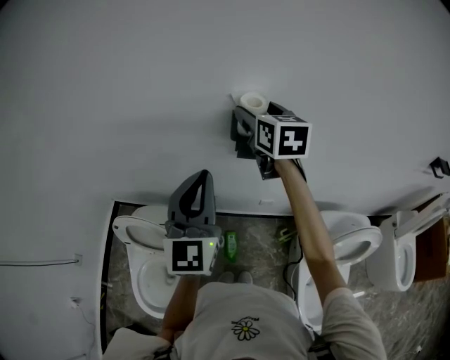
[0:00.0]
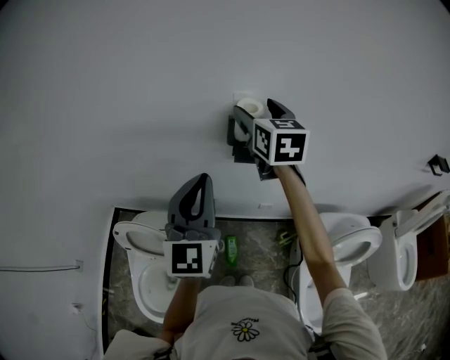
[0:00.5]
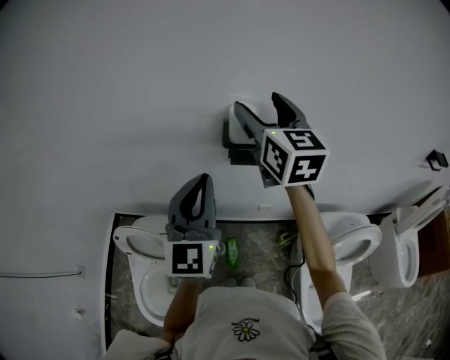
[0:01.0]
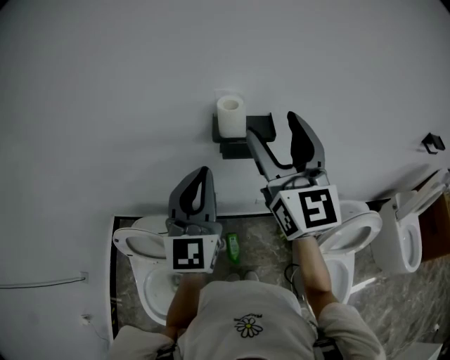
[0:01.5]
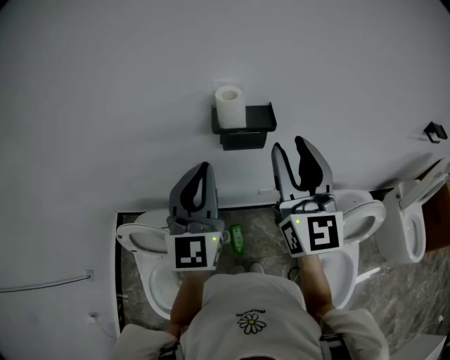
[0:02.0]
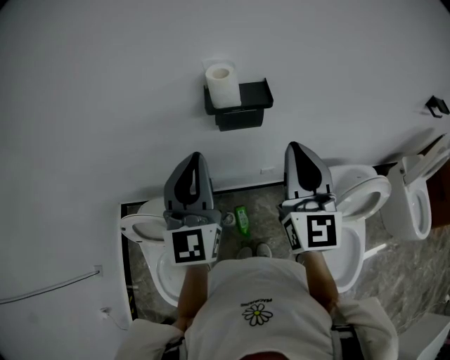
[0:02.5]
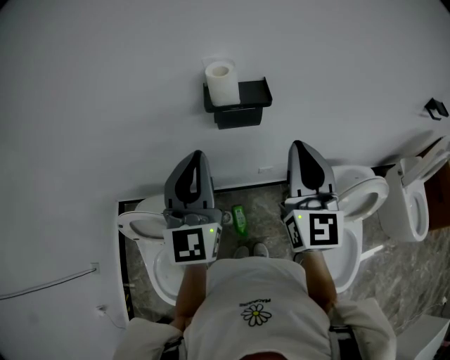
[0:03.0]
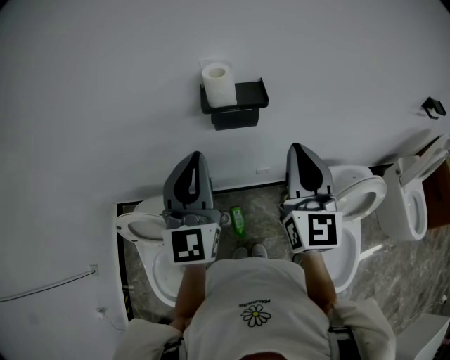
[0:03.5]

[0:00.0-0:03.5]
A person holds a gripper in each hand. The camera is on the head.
0:00.0 to 0:02.0: The right gripper travels backward by some 20 cm, angles its fingers upward, by some 30 degrees, and closes up.
0:02.0 to 0:03.5: The right gripper heads downward, covering approximately 5 cm, and closes up.

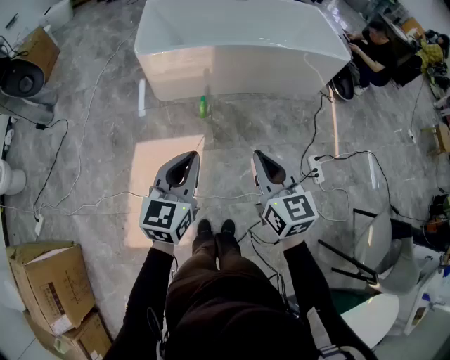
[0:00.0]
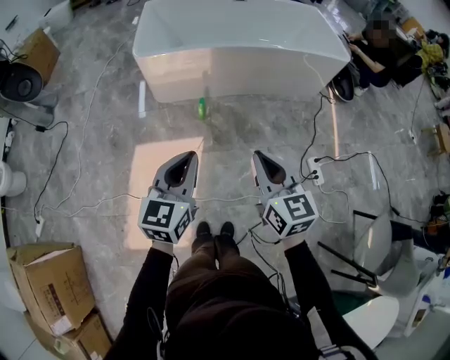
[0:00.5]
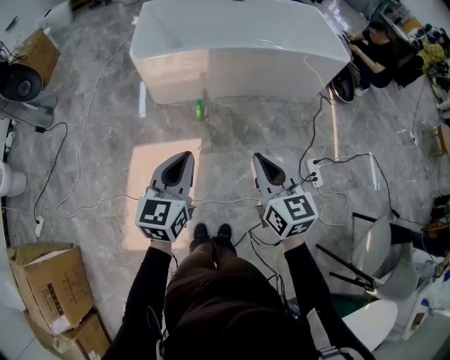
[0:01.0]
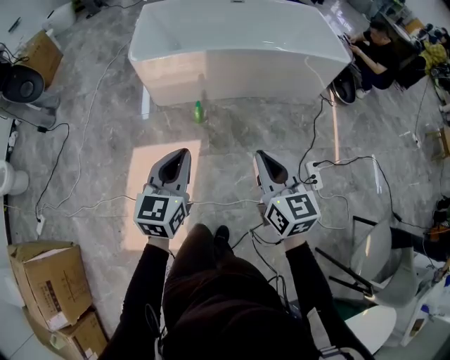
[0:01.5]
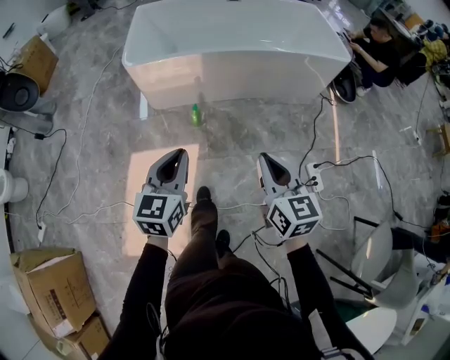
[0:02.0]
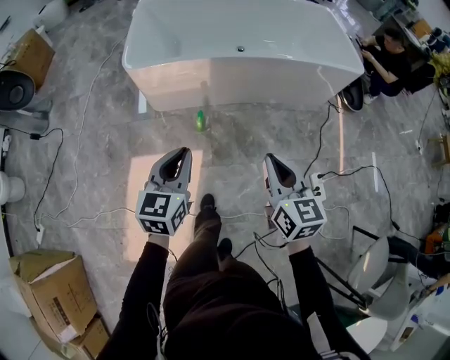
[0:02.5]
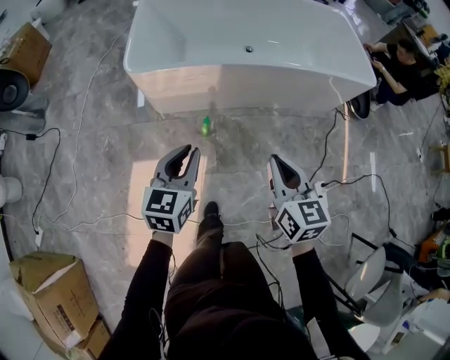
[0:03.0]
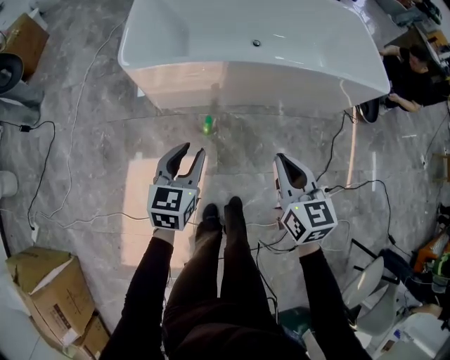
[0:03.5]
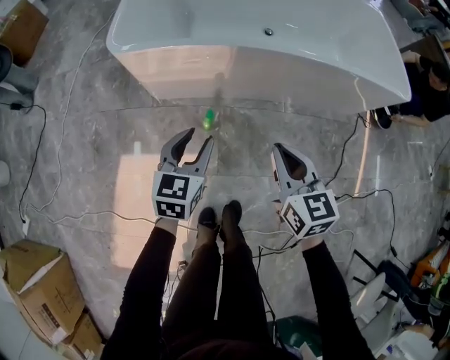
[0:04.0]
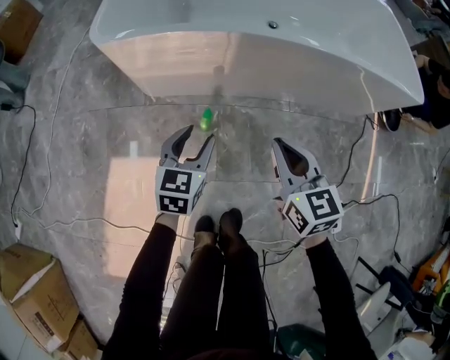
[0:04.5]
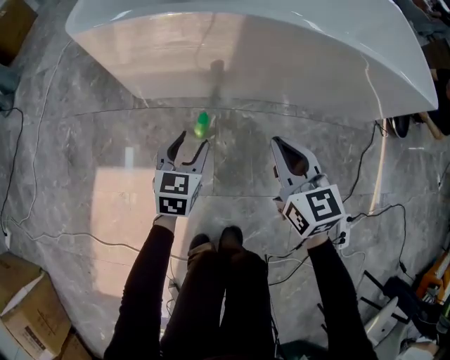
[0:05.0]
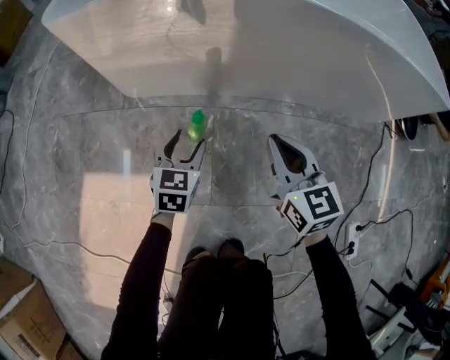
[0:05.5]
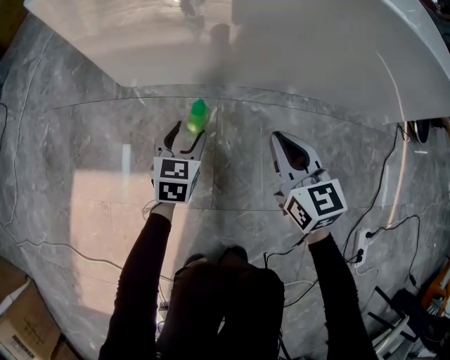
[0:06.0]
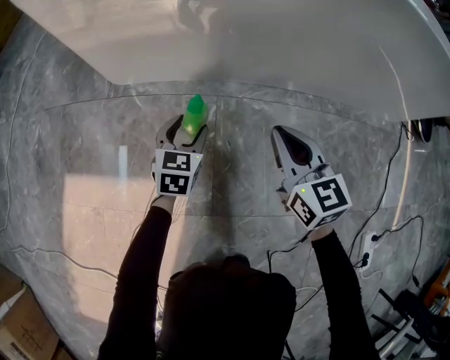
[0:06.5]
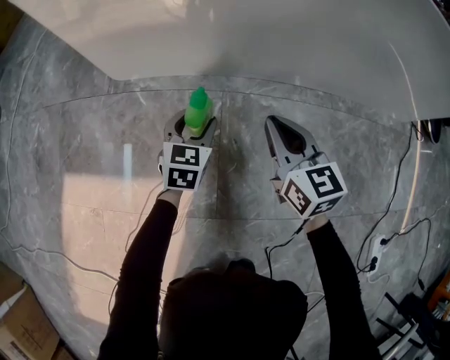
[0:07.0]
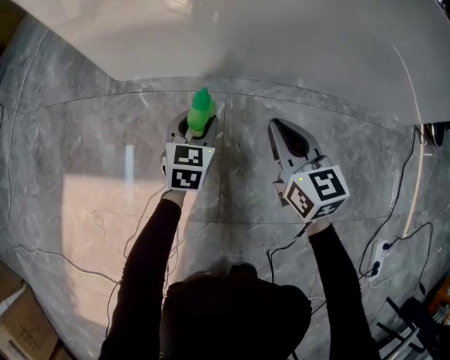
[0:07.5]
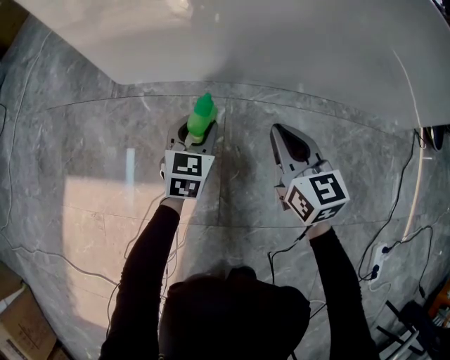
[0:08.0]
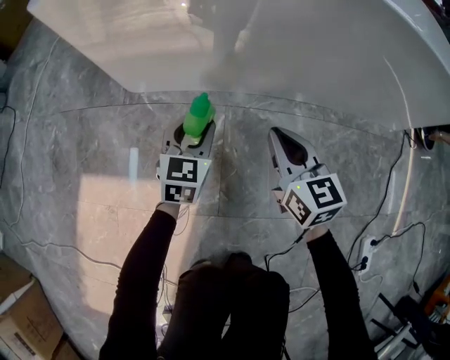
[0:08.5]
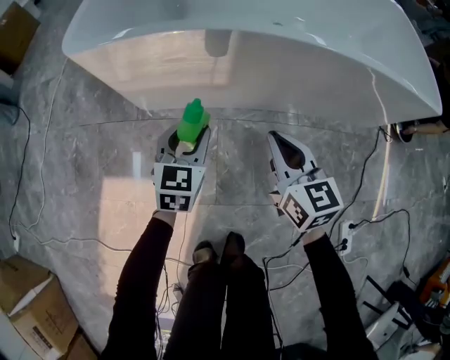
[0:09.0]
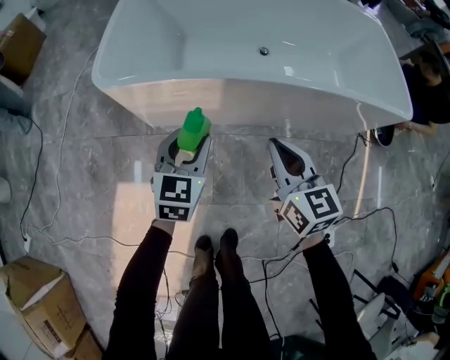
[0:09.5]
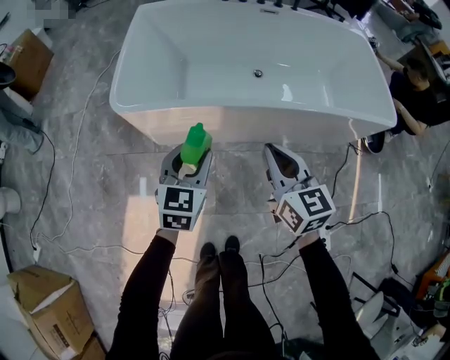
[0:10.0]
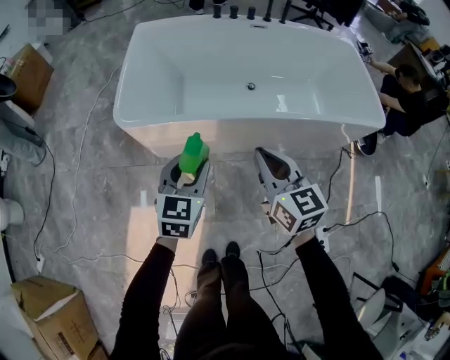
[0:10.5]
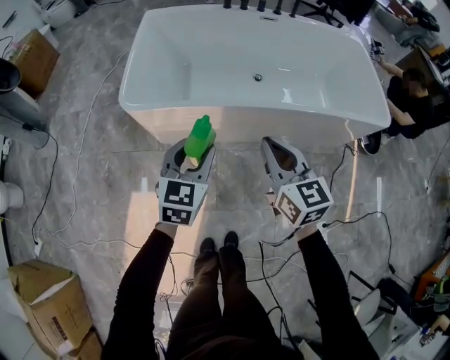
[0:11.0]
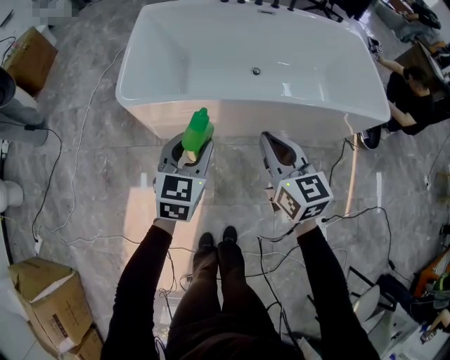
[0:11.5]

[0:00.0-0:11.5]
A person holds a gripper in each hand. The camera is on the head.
0:00.0 to 0:02.0: The left gripper moves forward, about 10 cm. Meanwhile the right gripper shifts some 10 cm to the right and forward.
0:02.0 to 0:04.0: Both grippers travel together forward and downward, about 35 cm. The left gripper opens its fingers.
0:04.0 to 0:06.0: The two grippers go approximately 40 cm downward.
0:06.0 to 0:07.5: The two grippers go approximately 10 cm downward.
0:07.5 to 0:09.5: Both grippers travel together upward, about 50 cm.
0:09.5 to 0:11.5: Both grippers travel together upward, roughly 15 cm.

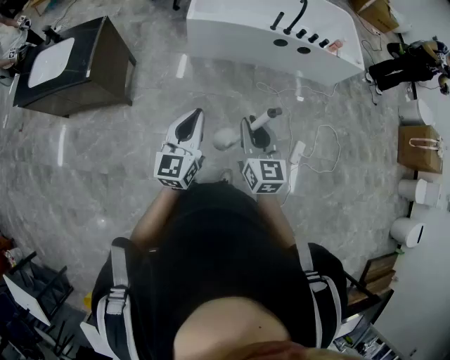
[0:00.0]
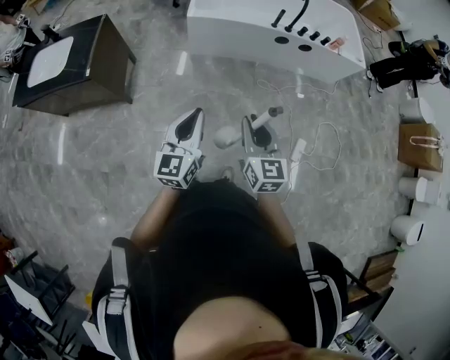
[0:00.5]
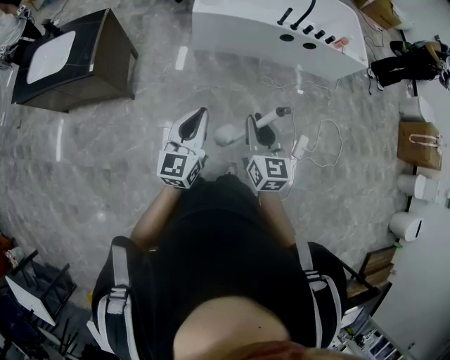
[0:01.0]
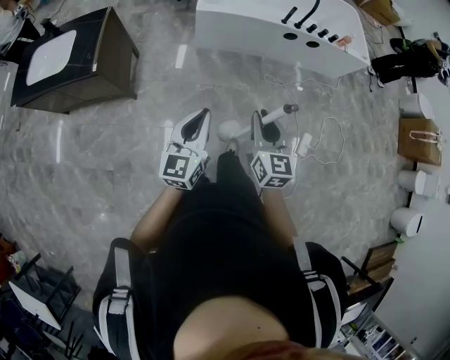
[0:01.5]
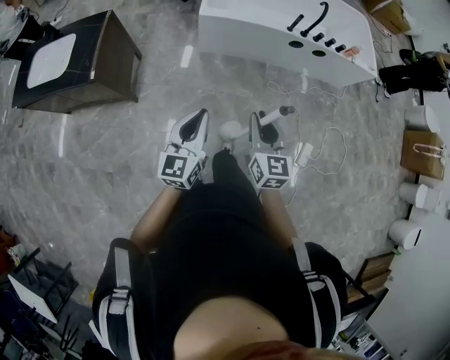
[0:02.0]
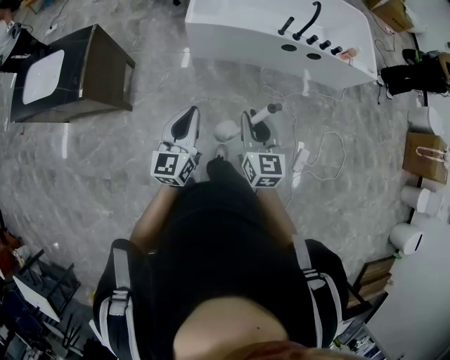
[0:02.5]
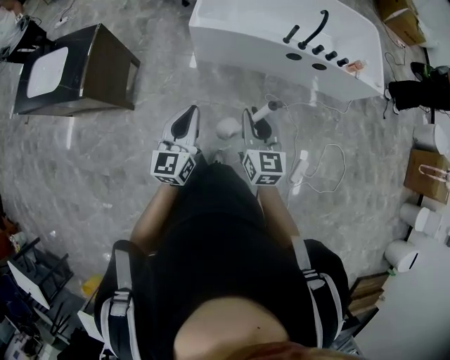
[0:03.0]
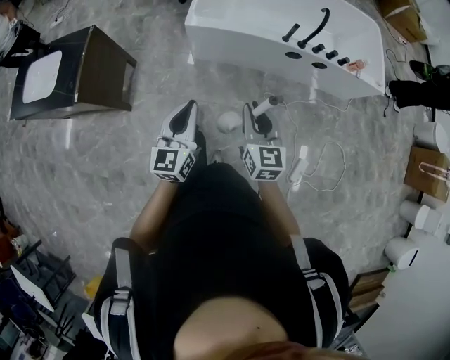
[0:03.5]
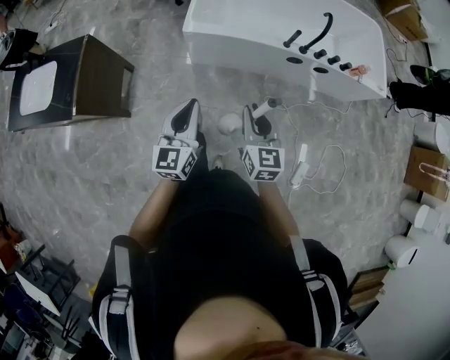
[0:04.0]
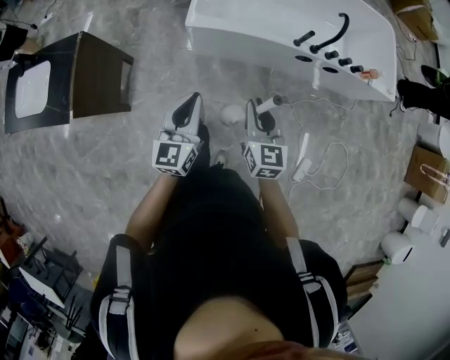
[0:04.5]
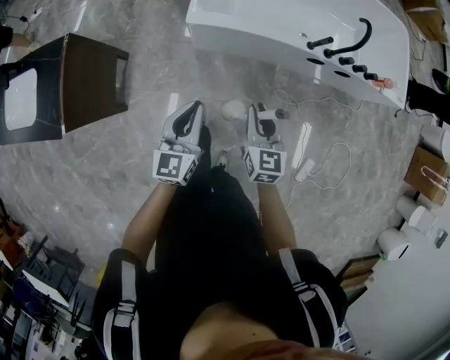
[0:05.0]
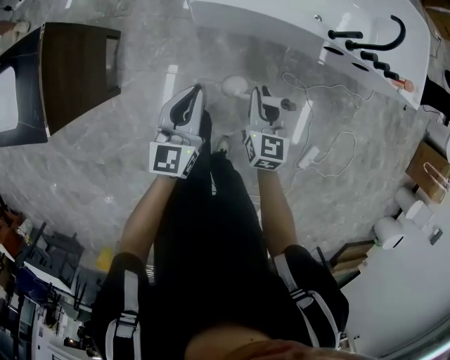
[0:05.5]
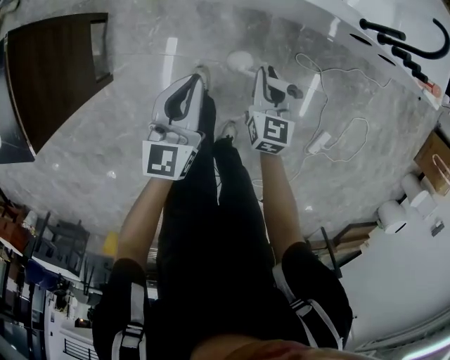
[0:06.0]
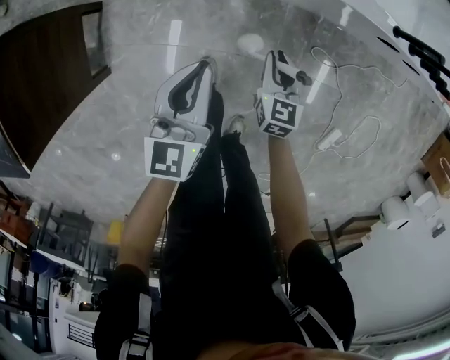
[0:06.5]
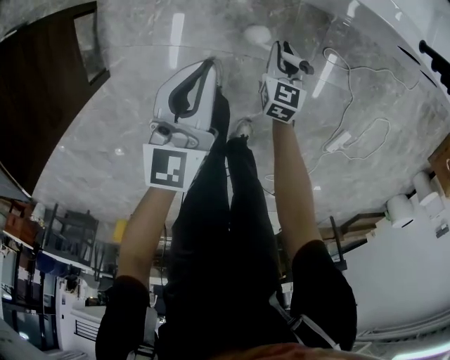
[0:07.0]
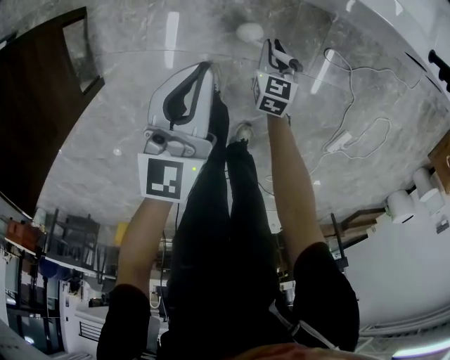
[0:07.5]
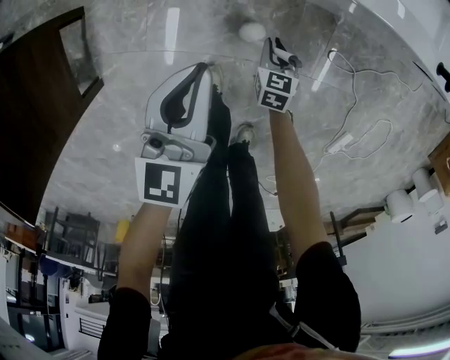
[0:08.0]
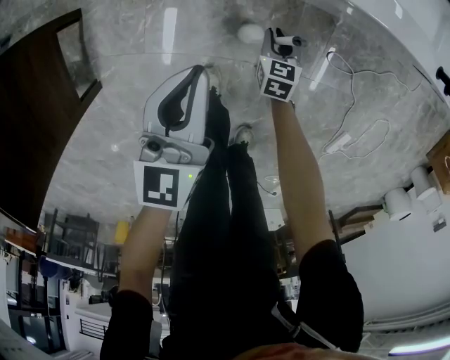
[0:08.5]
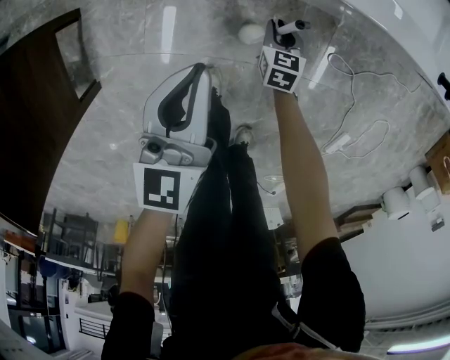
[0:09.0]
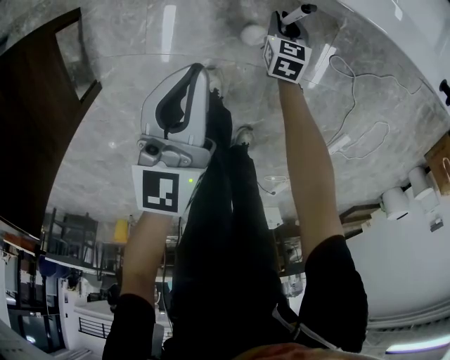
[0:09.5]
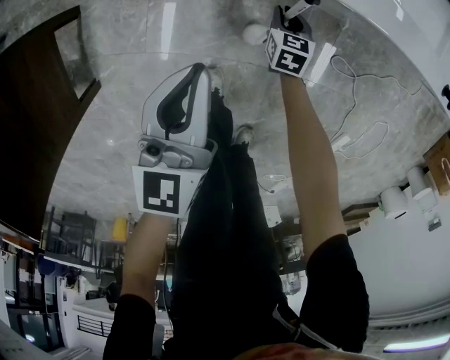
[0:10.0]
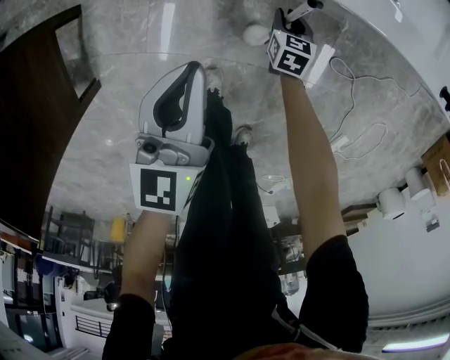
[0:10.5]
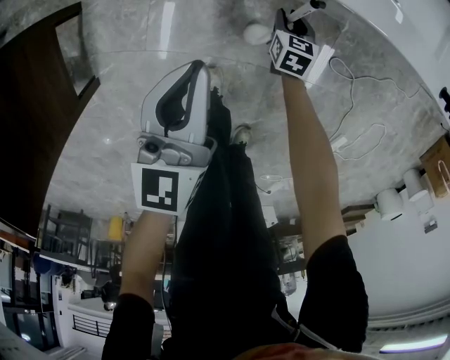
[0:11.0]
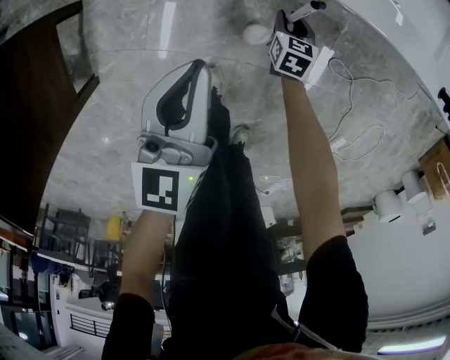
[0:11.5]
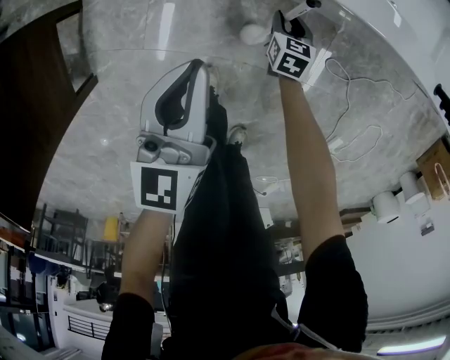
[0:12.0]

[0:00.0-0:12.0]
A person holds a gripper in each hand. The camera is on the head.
0:00.0 to 0:02.0: Both grippers move forward and to the left, approximately 10 cm.
0:02.0 to 0:04.0: Both grippers travel together forward, about 25 cm.
0:04.0 to 0:06.0: Both grippers move downward and forward, about 40 cm.
0:06.0 to 0:08.0: The left gripper moves downward and forward, about 20 cm; the right gripper goes roughly 35 cm downward.
0:08.0 to 0:10.0: The right gripper goes approximately 10 cm forward.
0:10.0 to 0:12.0: The grippers stay close to where they were, moving slightly.
